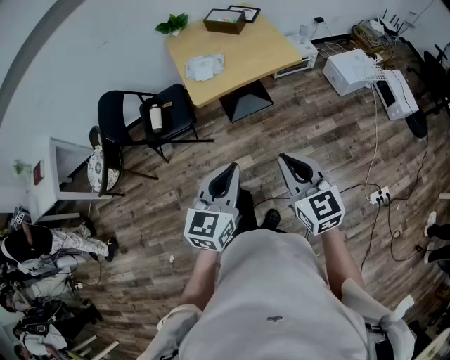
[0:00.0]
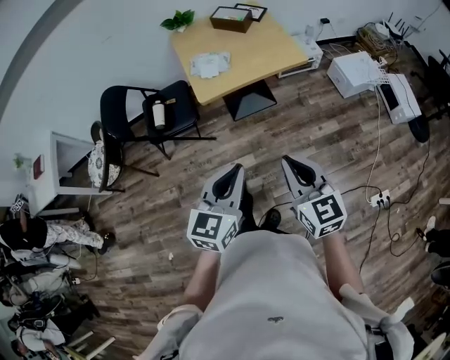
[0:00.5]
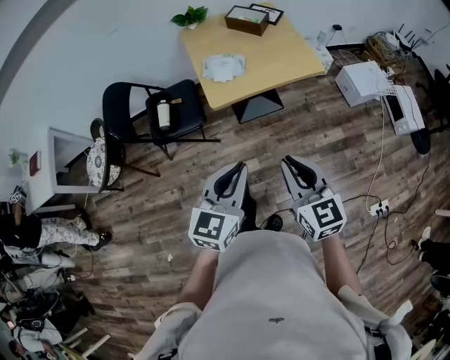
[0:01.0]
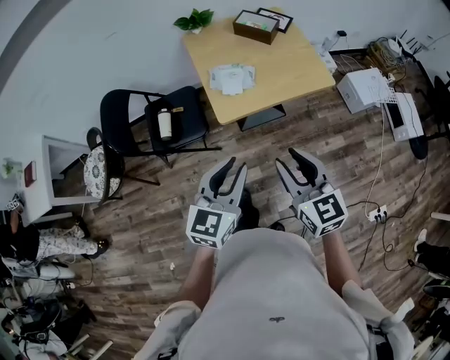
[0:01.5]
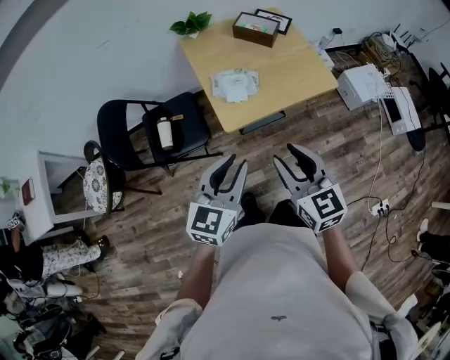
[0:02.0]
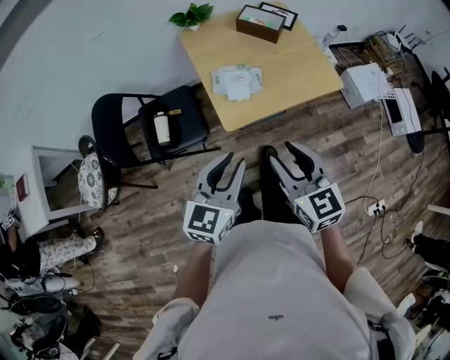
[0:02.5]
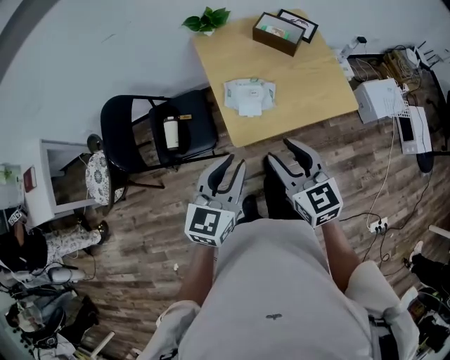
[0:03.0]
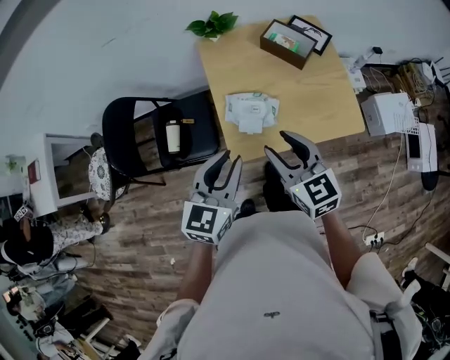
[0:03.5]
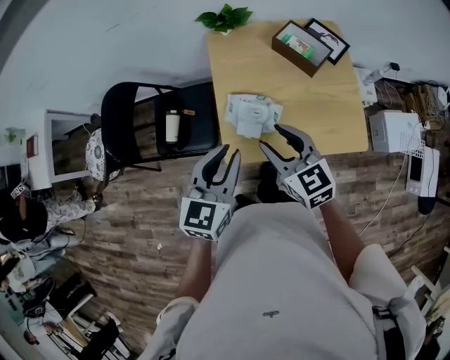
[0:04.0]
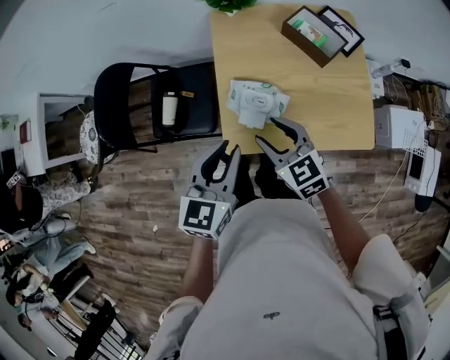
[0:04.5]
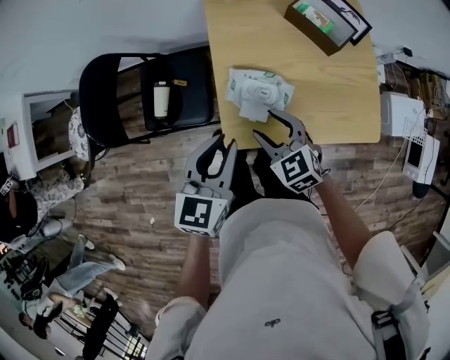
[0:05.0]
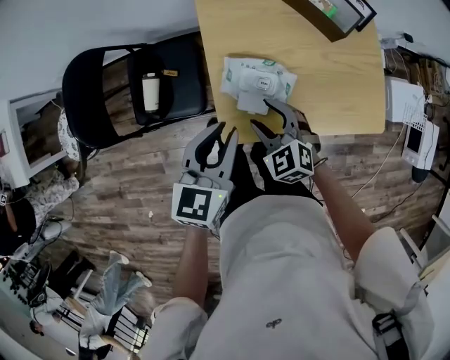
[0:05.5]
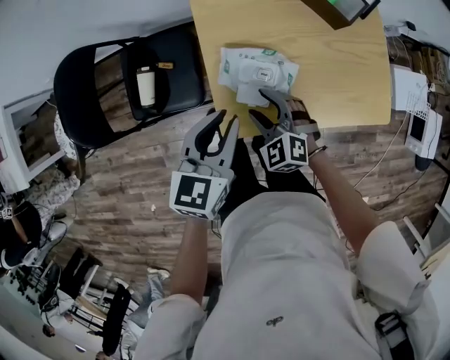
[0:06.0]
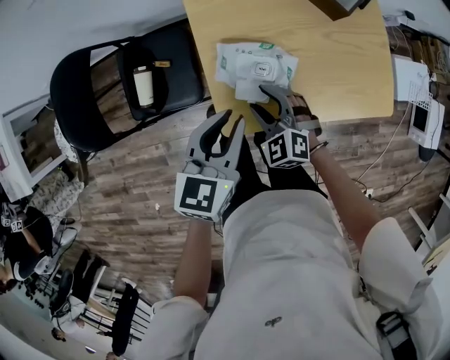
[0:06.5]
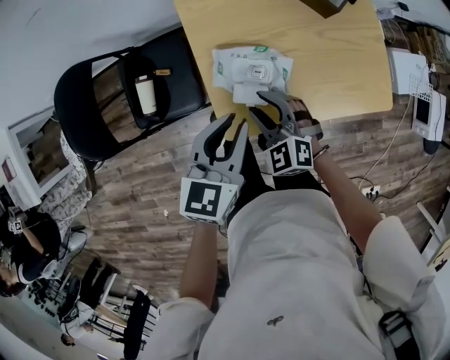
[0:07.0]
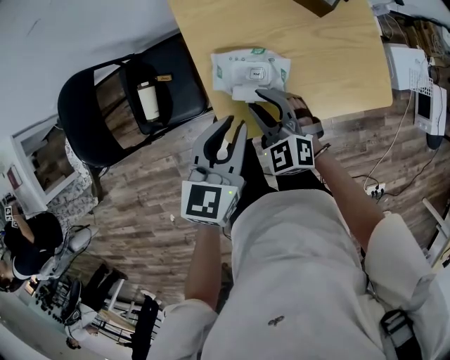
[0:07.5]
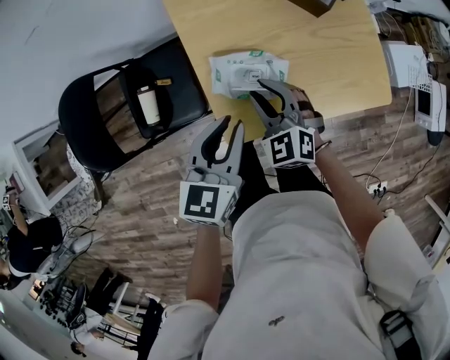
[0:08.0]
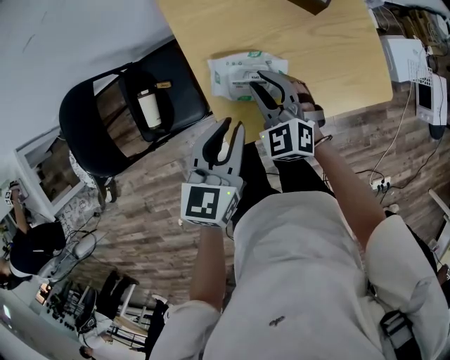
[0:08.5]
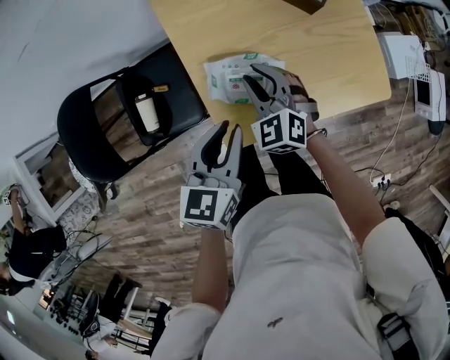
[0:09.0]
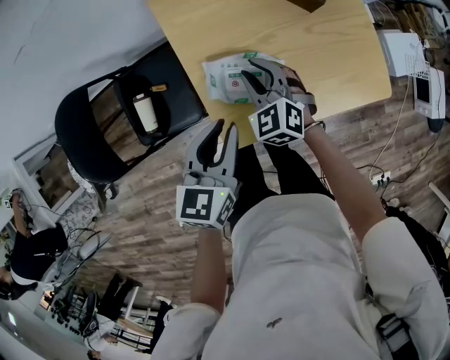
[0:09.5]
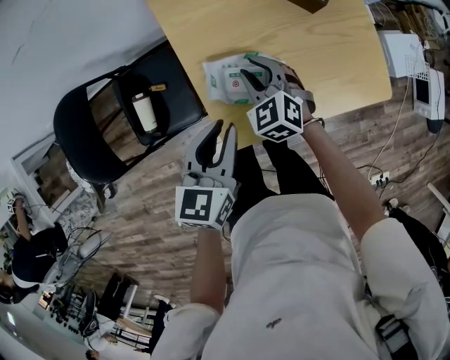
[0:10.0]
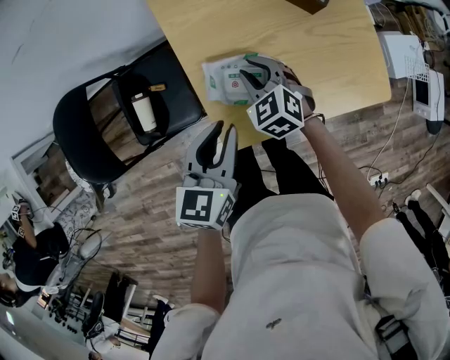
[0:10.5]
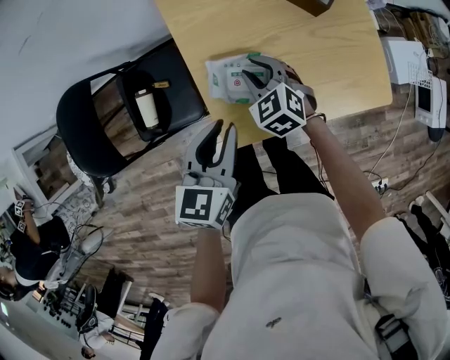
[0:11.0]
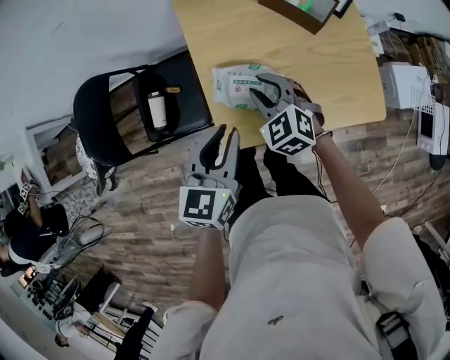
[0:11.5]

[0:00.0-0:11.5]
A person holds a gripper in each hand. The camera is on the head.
0:00.0 to 0:02.0: Both grippers travel together forward and to the left, some 30 cm. The right gripper opens its fingers.
0:02.0 to 0:04.0: The two grippers go approximately 25 cm forward. The left gripper turns by about 20 degrees, while the right gripper changes its angle by about 30 degrees.
0:04.0 to 0:06.0: The right gripper is displaced downward by some 25 cm, and swivels roughly 40 degrees. The left gripper is displaced downward and forward by about 15 cm.
0:06.0 to 0:07.5: The right gripper closes its fingers.
0:07.5 to 0:09.5: The right gripper goes roughly 10 cm forward.
0:09.5 to 0:11.5: The right gripper moves upward, some 5 cm. The left gripper shifts by about 5 cm.

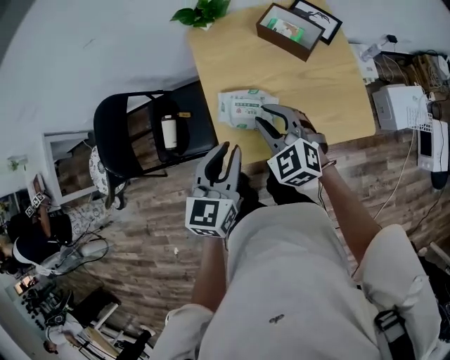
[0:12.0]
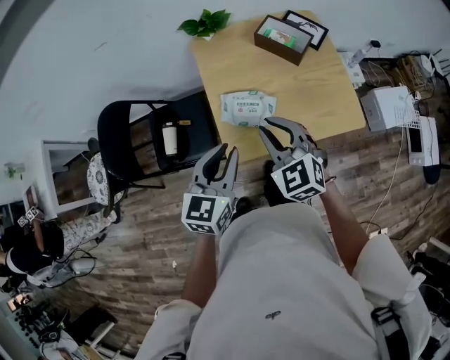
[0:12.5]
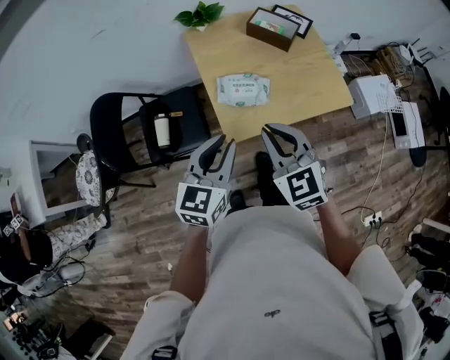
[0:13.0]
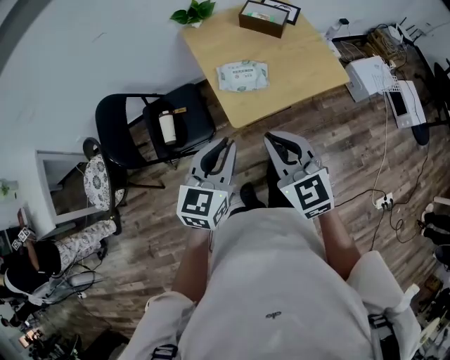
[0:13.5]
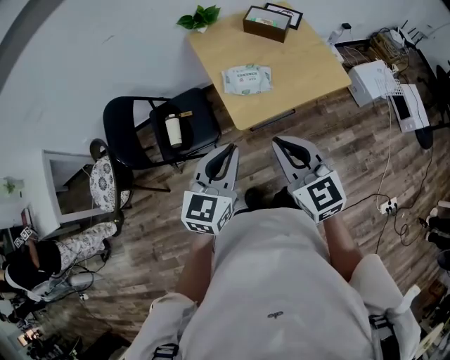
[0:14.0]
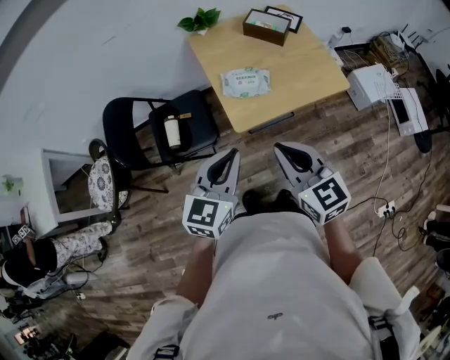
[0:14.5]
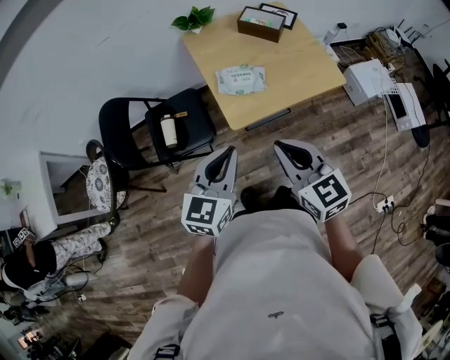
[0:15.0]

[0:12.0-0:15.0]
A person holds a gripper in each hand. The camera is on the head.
0:12.0 to 0:13.5: The right gripper is displaced backward and upward by roughly 30 cm, changes its angle by some 30 degrees, and closes its fingers; the left gripper heads backward and to the left, covering some 20 cm.
0:13.5 to 0:15.0: The grippers move only a little.

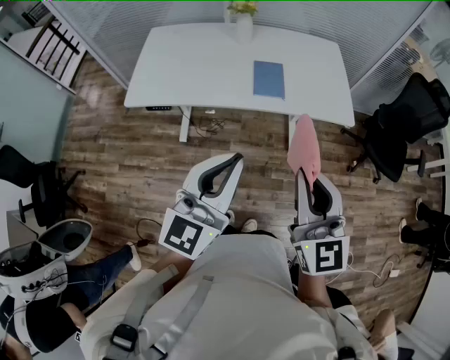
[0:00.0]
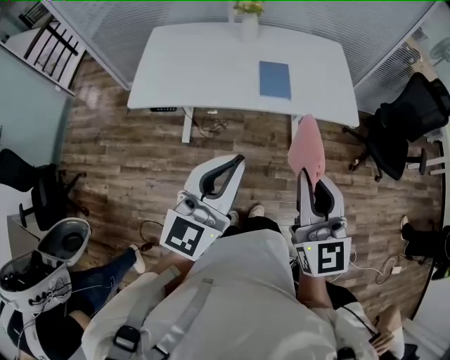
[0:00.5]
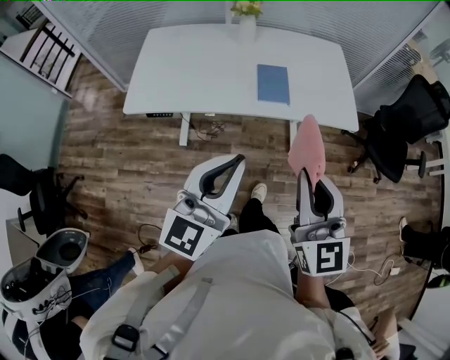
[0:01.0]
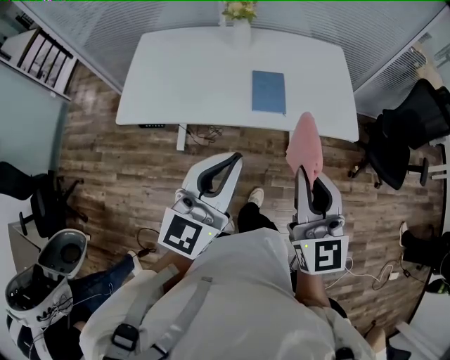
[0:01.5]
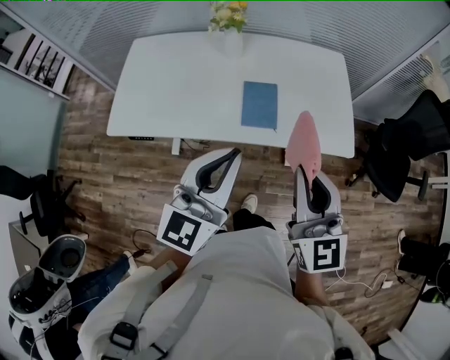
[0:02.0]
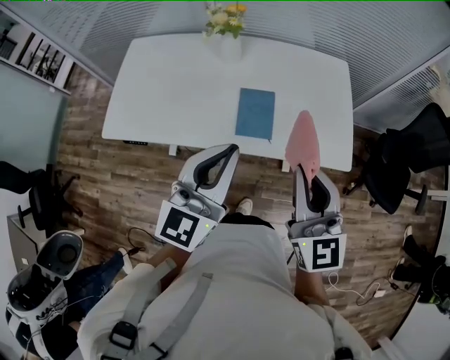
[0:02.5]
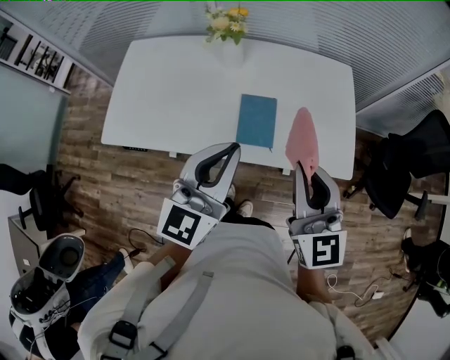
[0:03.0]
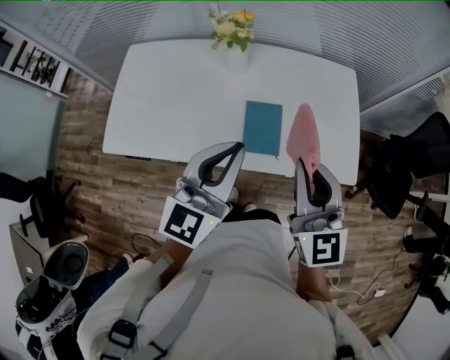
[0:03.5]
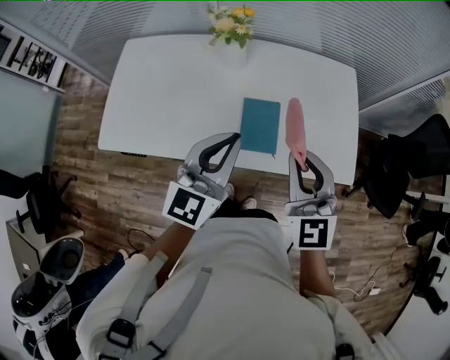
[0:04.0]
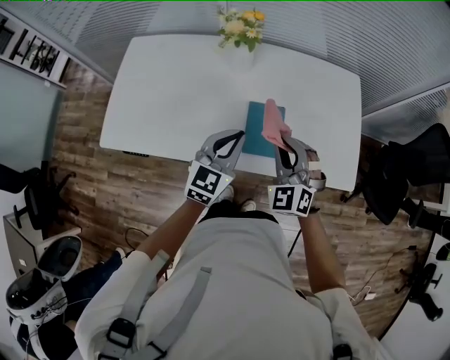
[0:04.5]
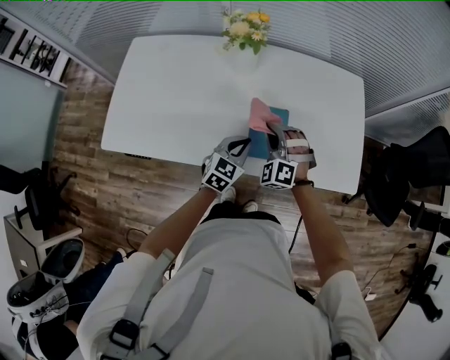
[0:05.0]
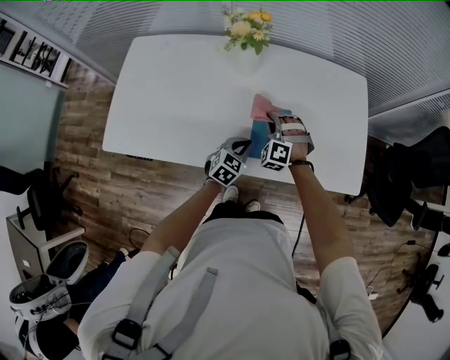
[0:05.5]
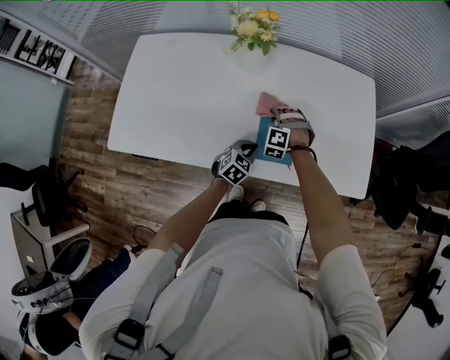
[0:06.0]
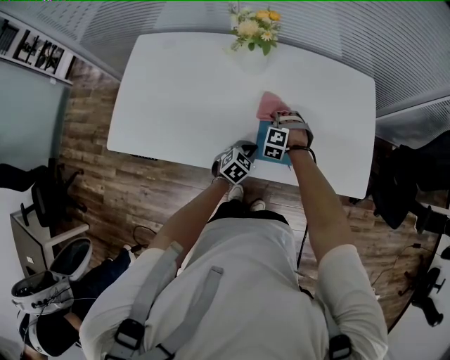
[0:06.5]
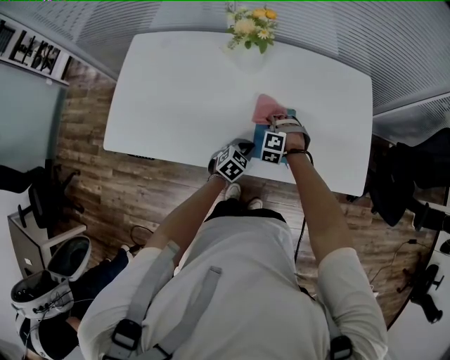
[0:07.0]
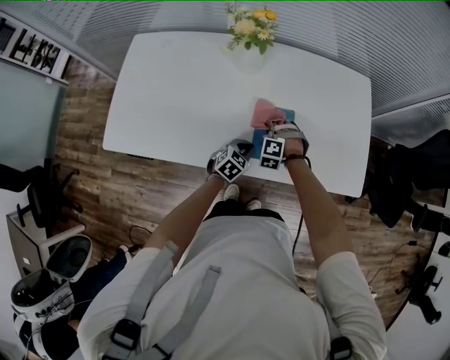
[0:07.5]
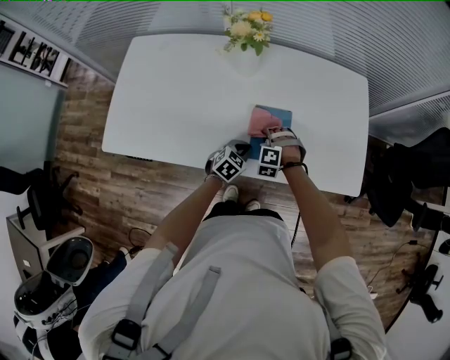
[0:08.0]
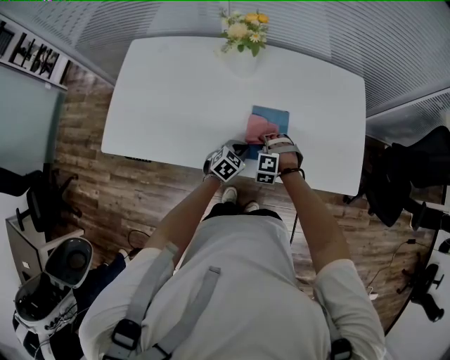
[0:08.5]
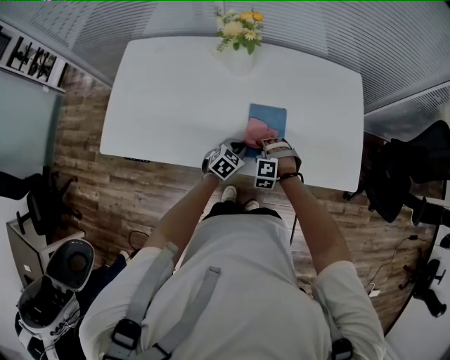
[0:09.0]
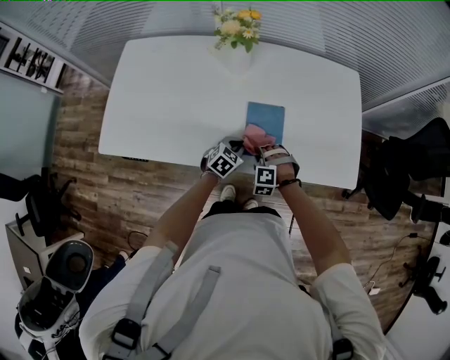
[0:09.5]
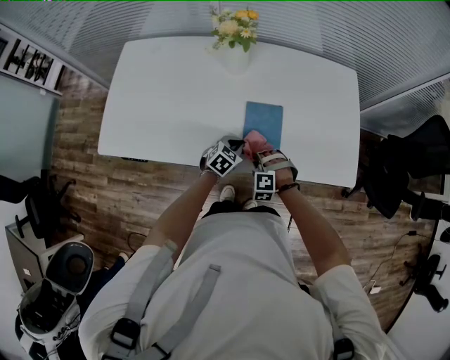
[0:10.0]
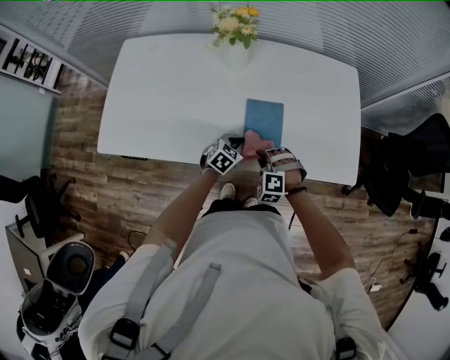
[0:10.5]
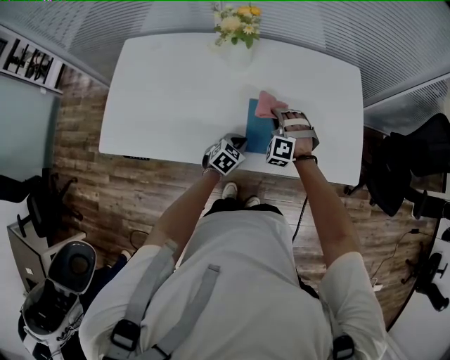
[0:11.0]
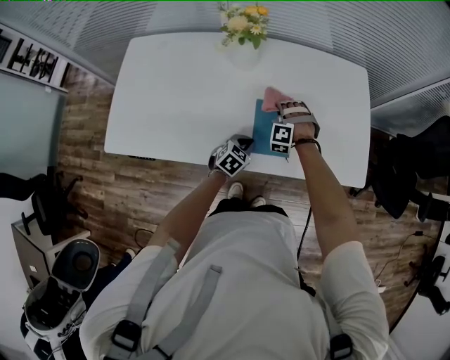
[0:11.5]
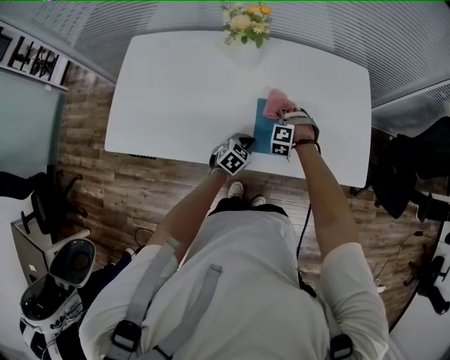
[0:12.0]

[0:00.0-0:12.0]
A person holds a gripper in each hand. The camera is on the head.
0:00.0 to 0:02.0: The two grippers go some 20 cm forward.
0:02.0 to 0:04.0: Both grippers move forward, about 15 cm.
0:04.0 to 0:06.0: The left gripper goes roughly 35 cm downward, and points its fingers approximately 40 degrees further downward. Meanwhile the right gripper heads downward and forward, covering approximately 40 cm, and tilts its fingers roughly 40 degrees downward.
0:06.0 to 0:08.0: The right gripper shifts approximately 5 cm backward.
0:08.0 to 0:10.0: The right gripper shifts some 10 cm backward.
0:10.0 to 0:12.0: The right gripper moves forward, about 15 cm.
